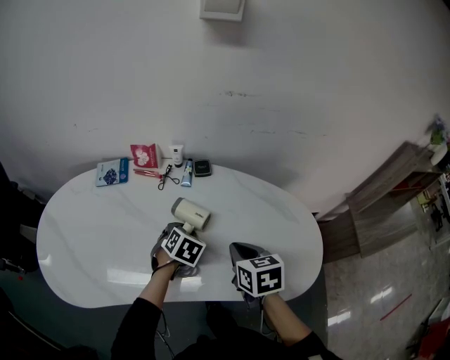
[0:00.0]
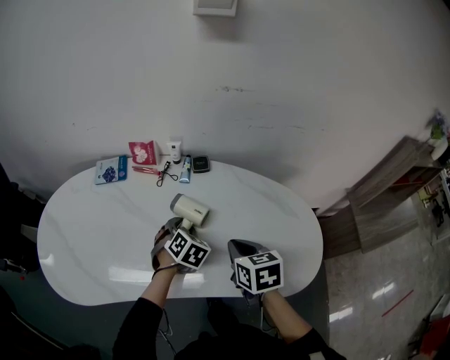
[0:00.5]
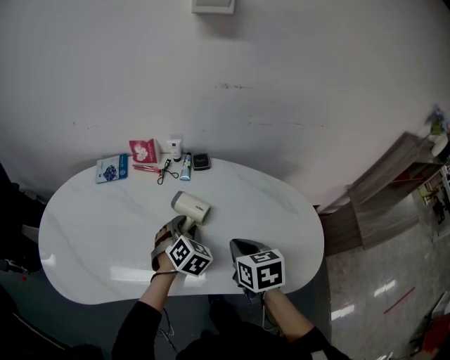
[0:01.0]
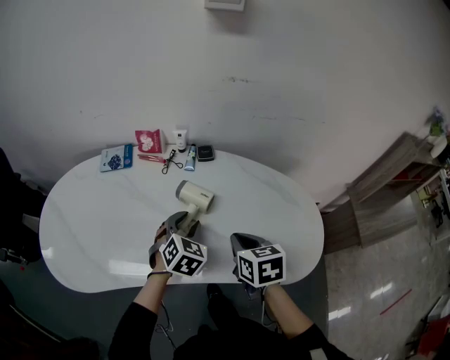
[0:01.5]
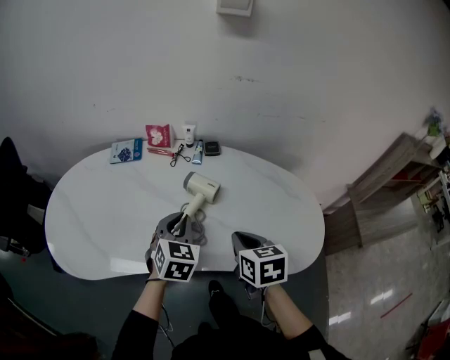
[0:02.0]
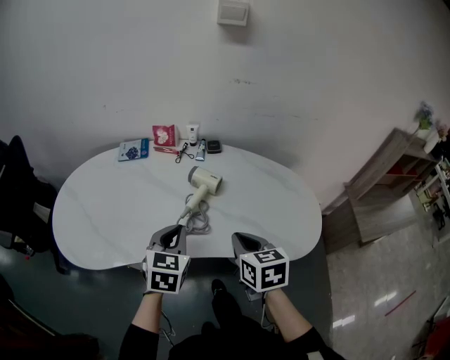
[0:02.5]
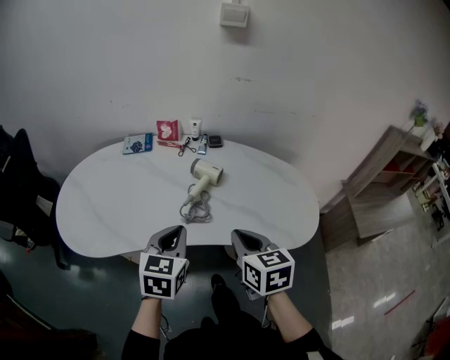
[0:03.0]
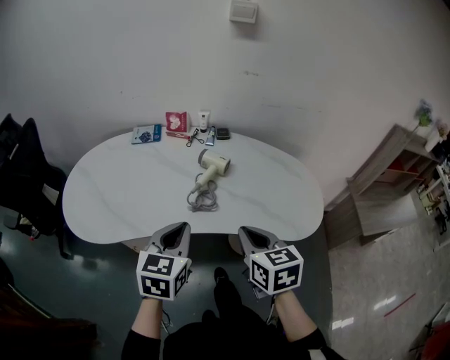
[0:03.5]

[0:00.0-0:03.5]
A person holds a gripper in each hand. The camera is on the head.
0:00.0 to 0:02.0: The right gripper travels backward by about 5 cm, while the left gripper moves upward and backward, roughly 15 cm, rotates some 30 degrees, and closes its fingers.
0:02.0 to 0:03.5: The left gripper moves backward, some 20 cm, and rotates some 20 degrees. The right gripper travels backward and upward by about 15 cm.

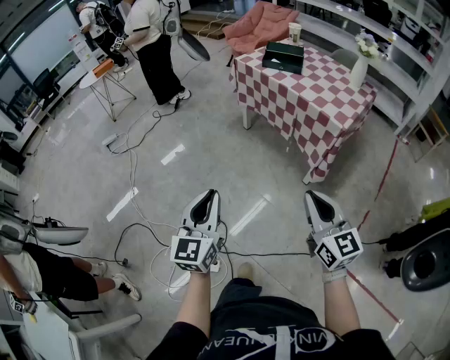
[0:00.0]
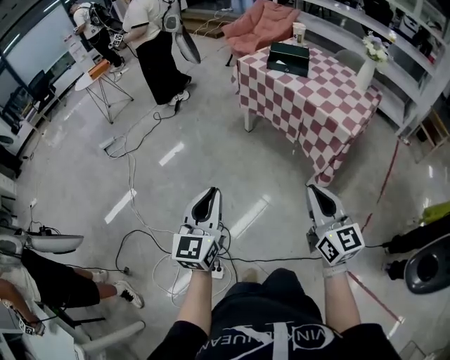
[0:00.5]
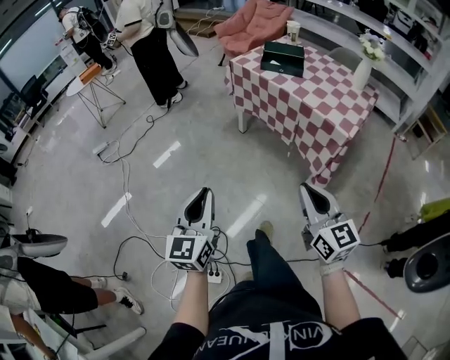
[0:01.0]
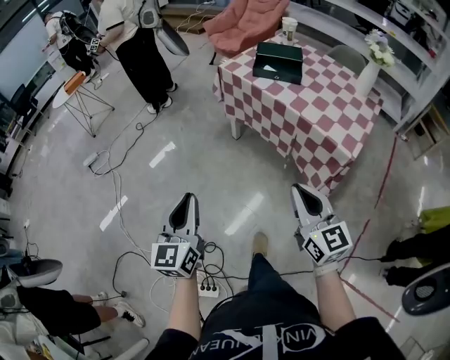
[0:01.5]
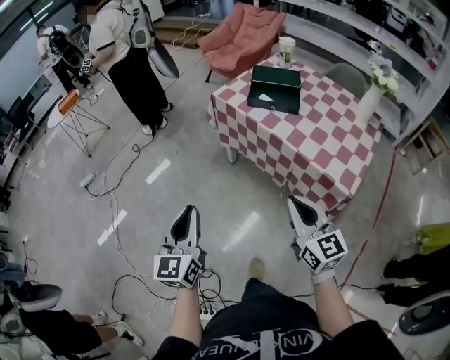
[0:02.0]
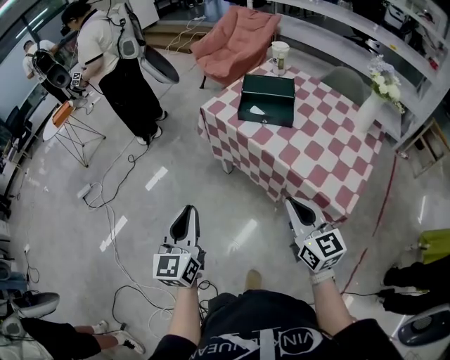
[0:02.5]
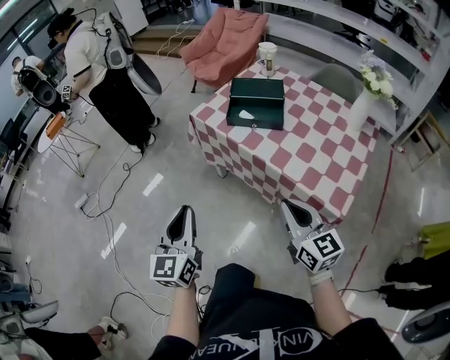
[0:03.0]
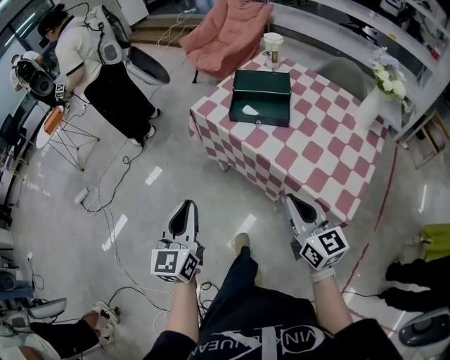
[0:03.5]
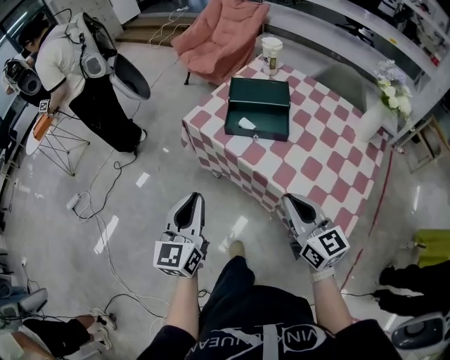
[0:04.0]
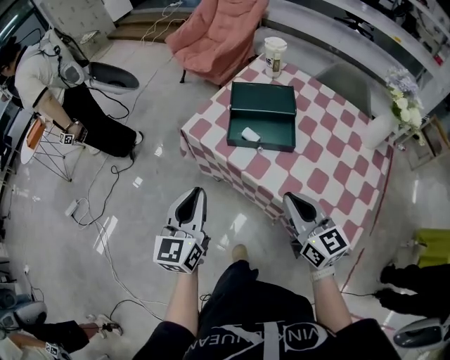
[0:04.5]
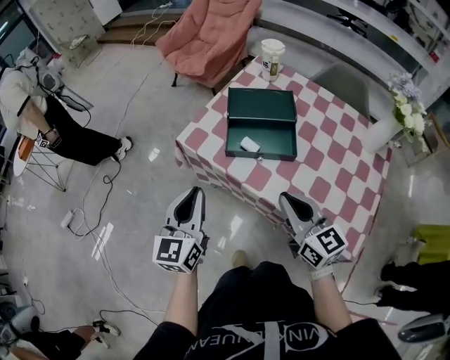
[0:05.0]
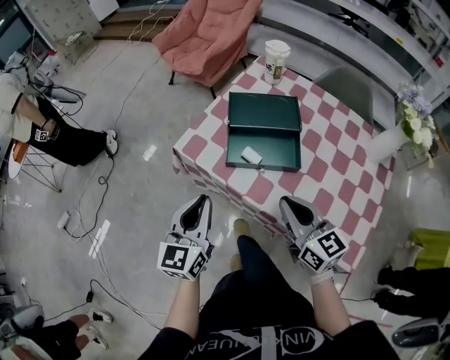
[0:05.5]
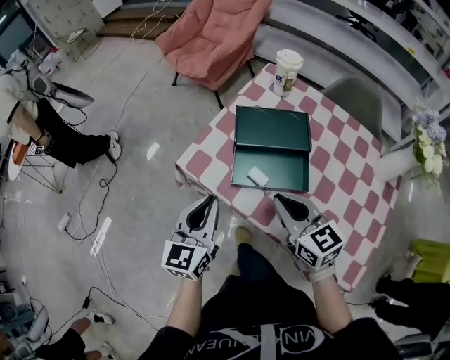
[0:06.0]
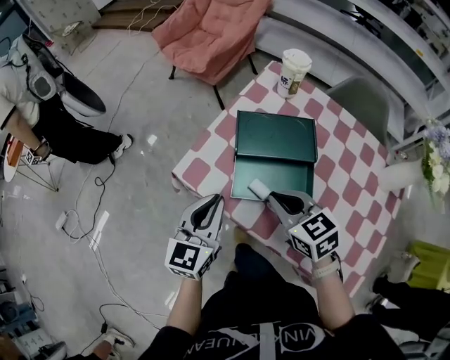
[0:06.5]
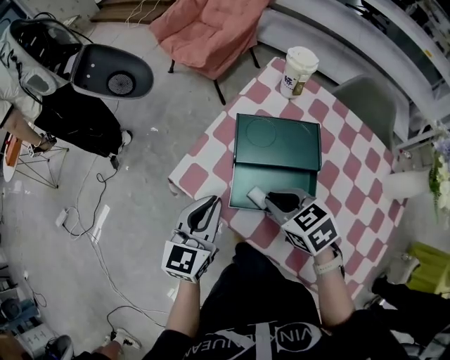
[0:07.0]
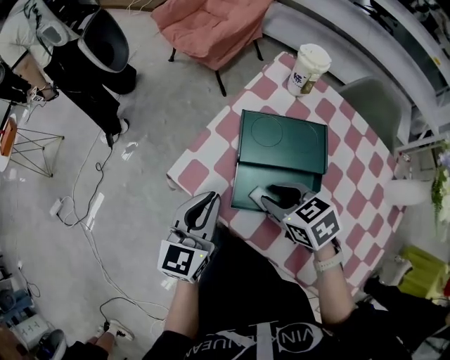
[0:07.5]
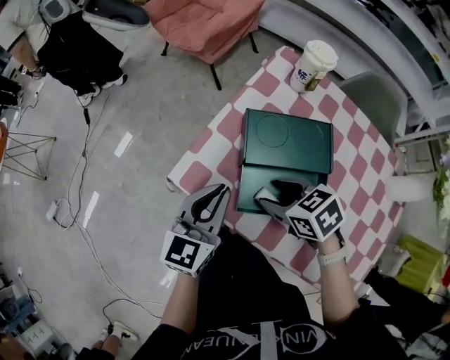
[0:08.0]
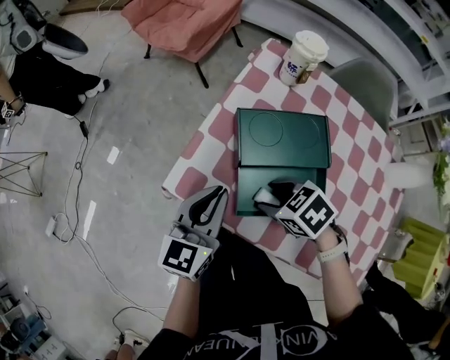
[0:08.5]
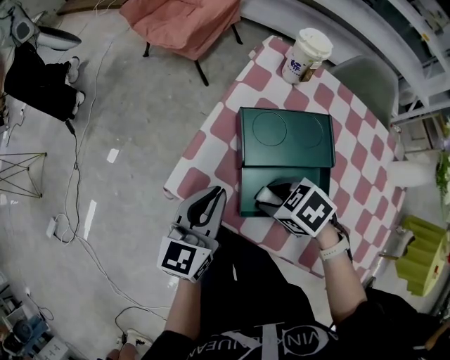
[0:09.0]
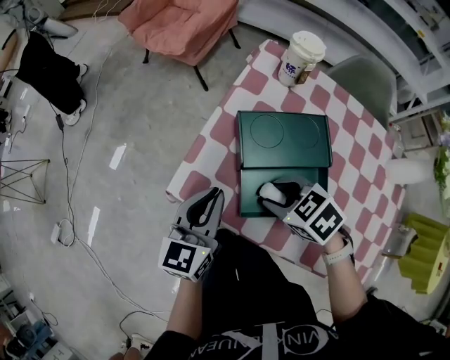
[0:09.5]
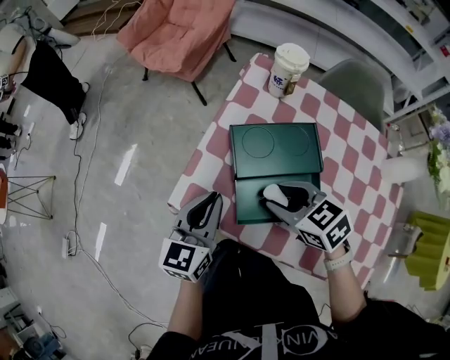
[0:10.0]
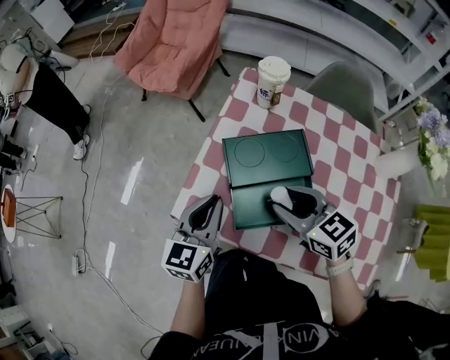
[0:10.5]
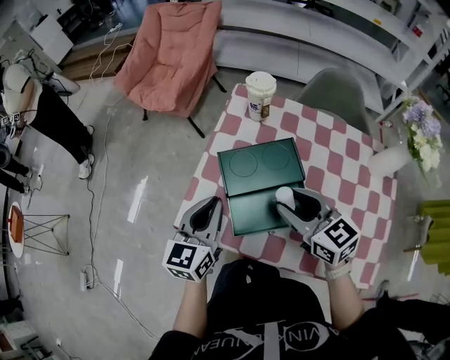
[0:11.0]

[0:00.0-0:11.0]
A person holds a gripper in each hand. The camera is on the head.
0:00.0 to 0:02.0: Both grippers travel together forward, some 35 cm.
0:02.0 to 0:03.5: Both grippers travel together forward and to the right, roughly 15 cm.
0:03.5 to 0:05.5: Both grippers travel together forward, approximately 25 cm.
0:05.5 to 0:07.5: The left gripper shifts some 15 cm forward; the right gripper shifts roughly 20 cm forward and downward, angles its fingers downward, by approximately 40 degrees, and opens its fingers.
0:07.5 to 0:09.0: The right gripper ends up approximately 5 cm from where it was.
0:09.0 to 0:11.0: The right gripper heads upward, covering roughly 15 cm, and points its fingers approximately 40 degrees further upward. The left gripper moves upward, some 5 cm.

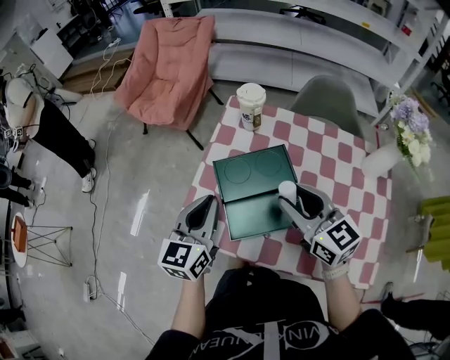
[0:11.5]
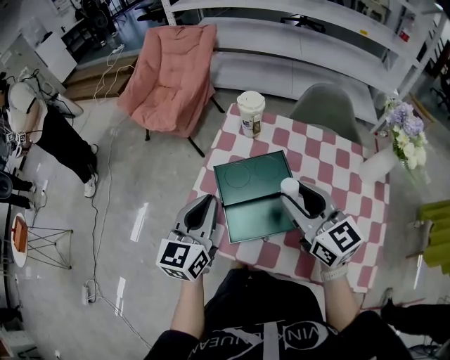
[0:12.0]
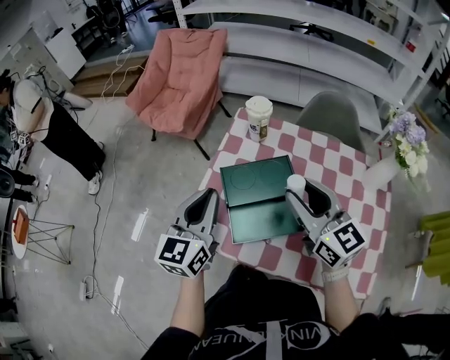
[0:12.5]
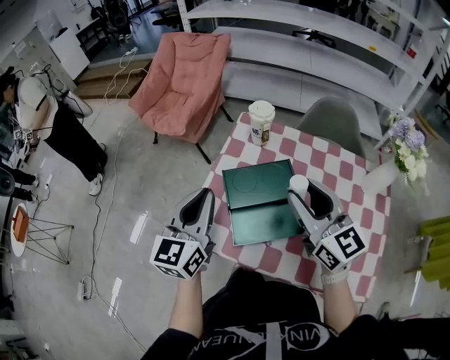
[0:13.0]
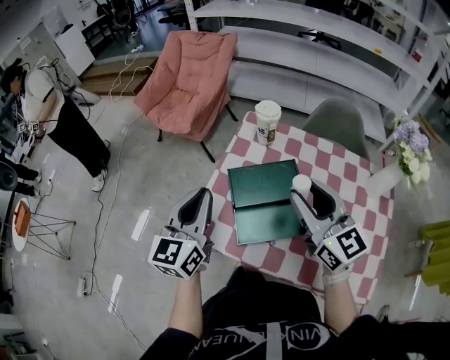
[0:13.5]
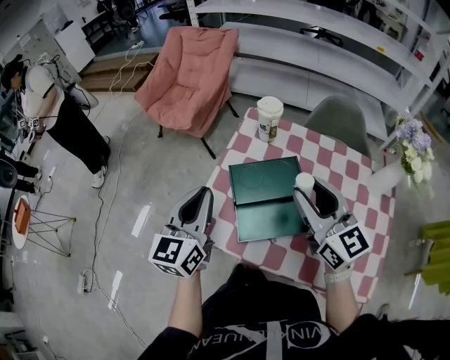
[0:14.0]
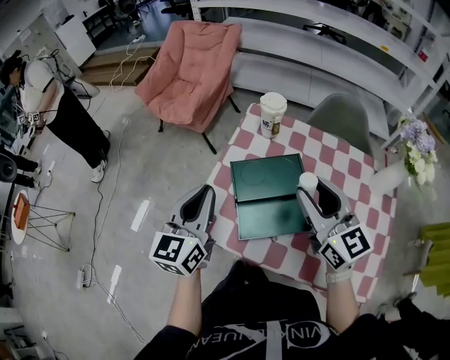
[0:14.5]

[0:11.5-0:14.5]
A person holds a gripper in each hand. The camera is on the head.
0:11.5 to 0:13.0: The grippers both shift upward by approximately 10 cm.
0:13.0 to 0:14.5: The grippers stay close to where they were, moving slightly.

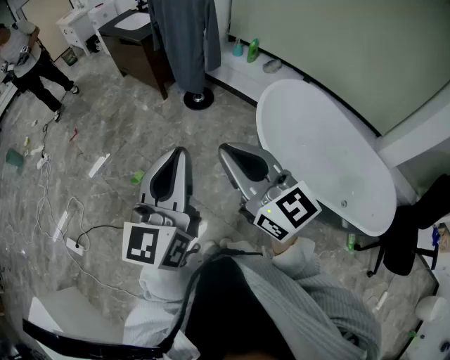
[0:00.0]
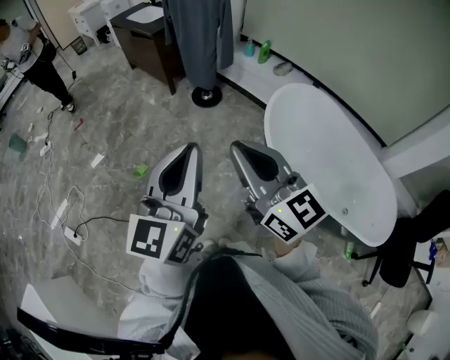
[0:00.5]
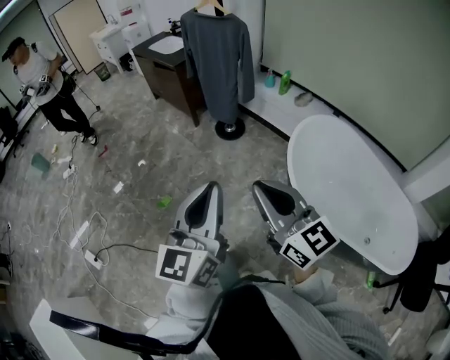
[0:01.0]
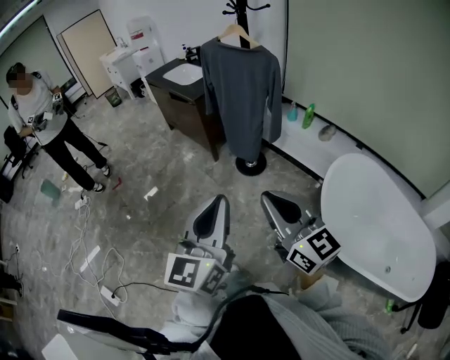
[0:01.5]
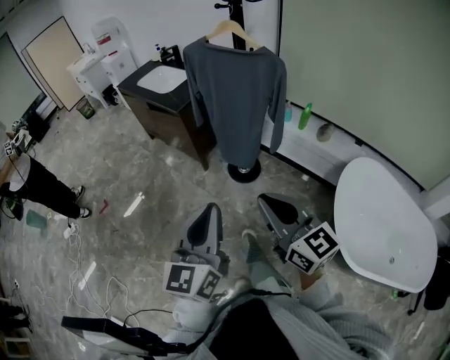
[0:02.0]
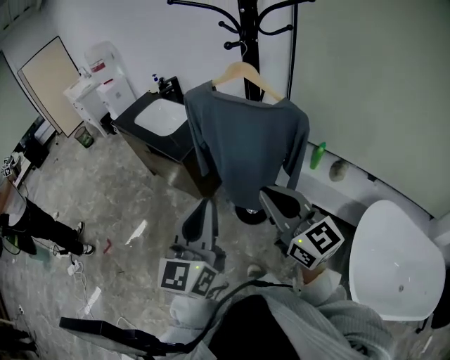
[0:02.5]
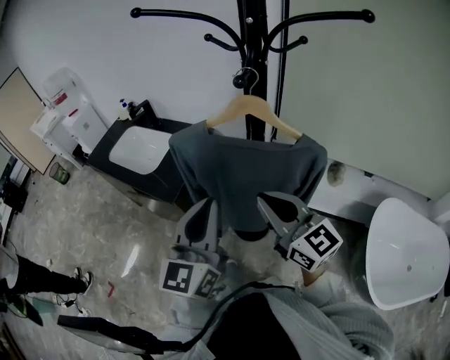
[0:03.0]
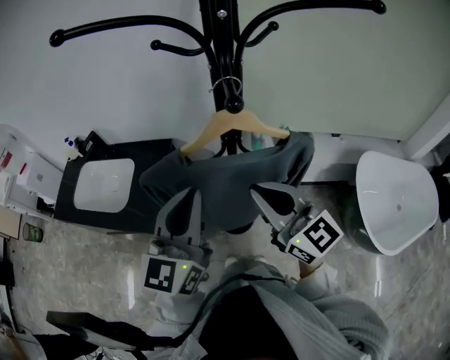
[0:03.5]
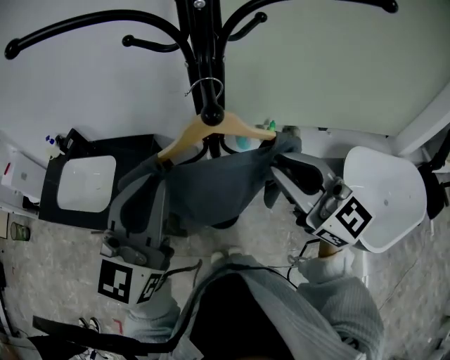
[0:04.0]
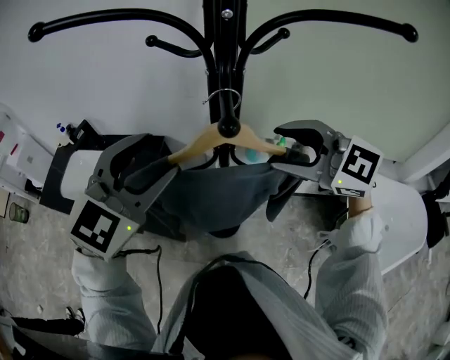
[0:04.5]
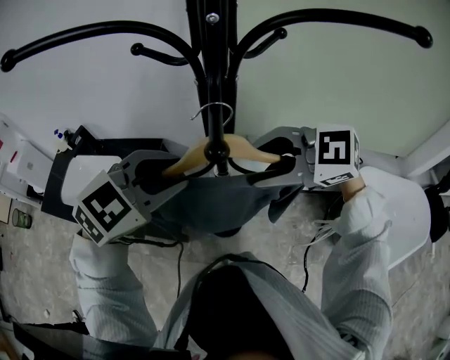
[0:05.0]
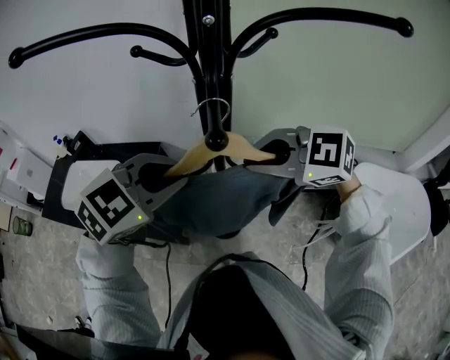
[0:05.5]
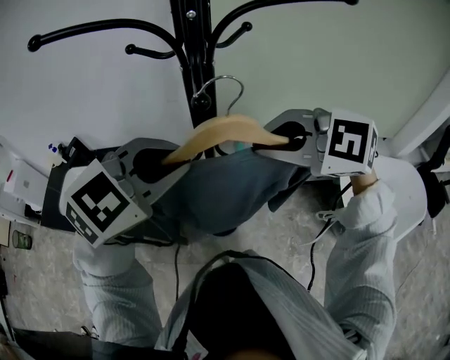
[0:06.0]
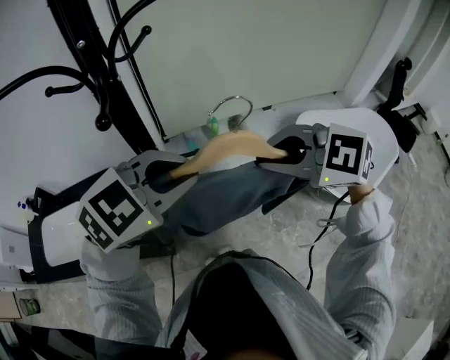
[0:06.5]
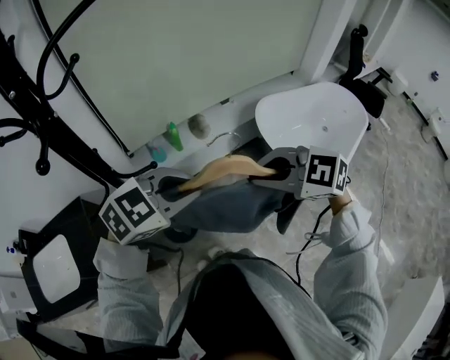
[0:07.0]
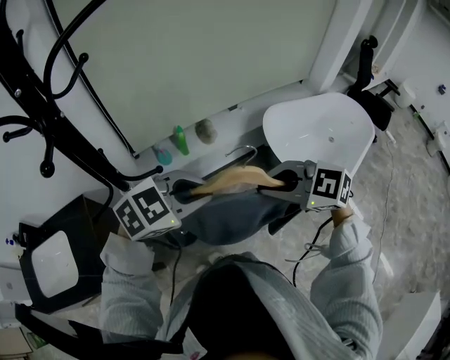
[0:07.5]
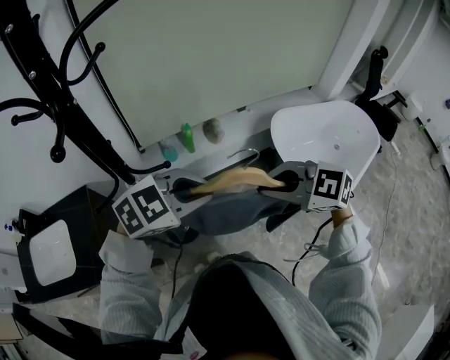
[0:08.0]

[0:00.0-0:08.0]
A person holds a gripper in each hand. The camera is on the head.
0:00.0 to 0:02.0: The pair of grippers is taken forward, about 50 cm.
0:02.0 to 0:04.0: The two grippers travel together, some 60 cm. The left gripper turns by some 50 degrees, while the right gripper rotates approximately 30 degrees.
0:04.0 to 0:06.0: The left gripper travels downward and back again, about 10 cm each way, tilts its fingers some 40 degrees downward, and opens and closes again, while the right gripper angles its fingers downward, by some 40 degrees, and opens and closes again.
0:06.0 to 0:08.0: The right gripper ends up about 25 cm from where it was, and changes its angle by some 30 degrees, while the left gripper changes place by about 25 cm, and turns by roughly 40 degrees.
